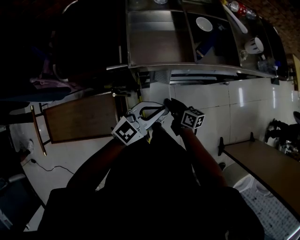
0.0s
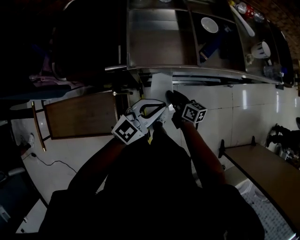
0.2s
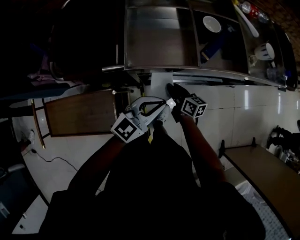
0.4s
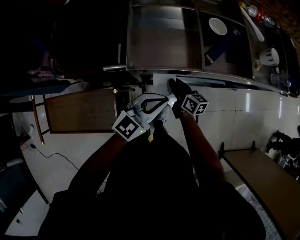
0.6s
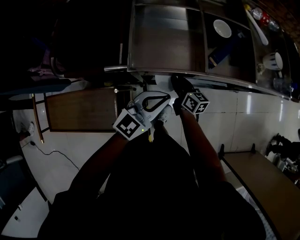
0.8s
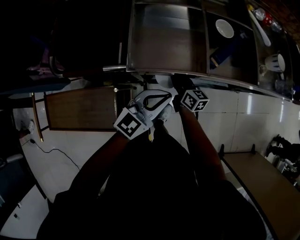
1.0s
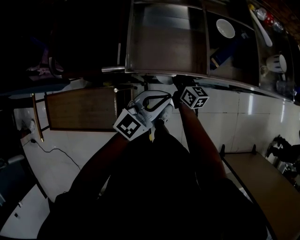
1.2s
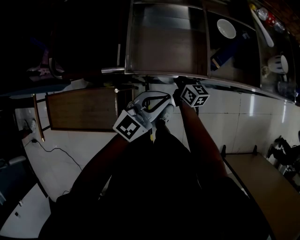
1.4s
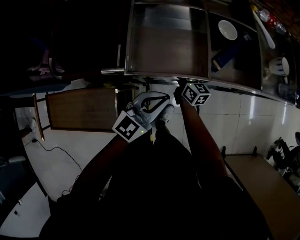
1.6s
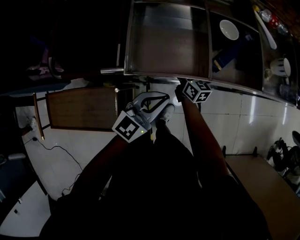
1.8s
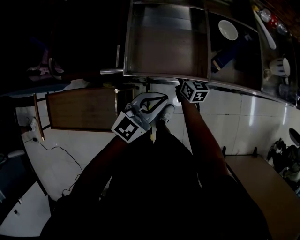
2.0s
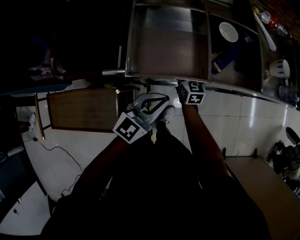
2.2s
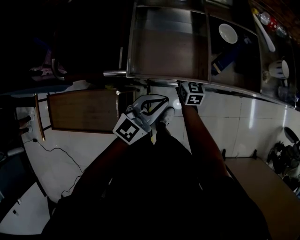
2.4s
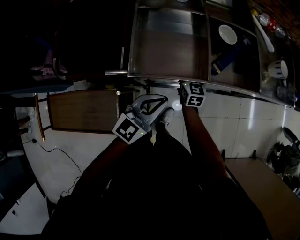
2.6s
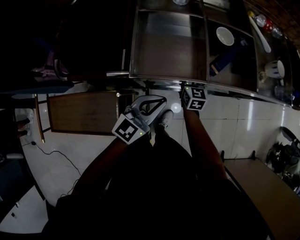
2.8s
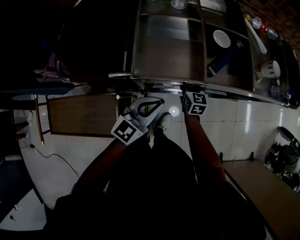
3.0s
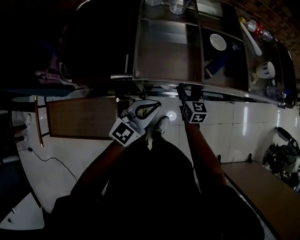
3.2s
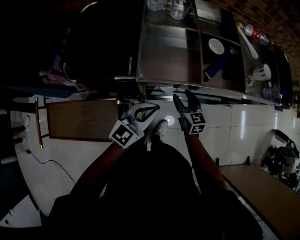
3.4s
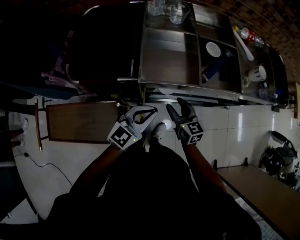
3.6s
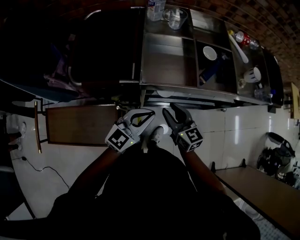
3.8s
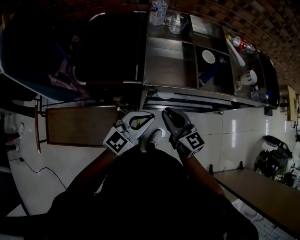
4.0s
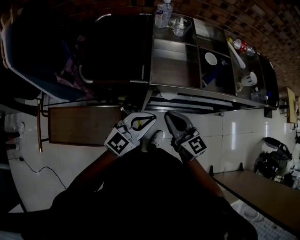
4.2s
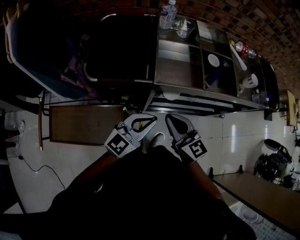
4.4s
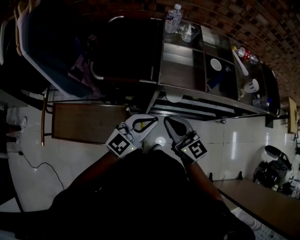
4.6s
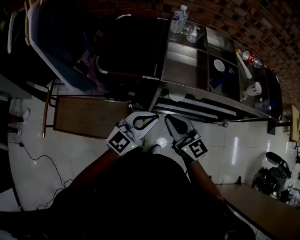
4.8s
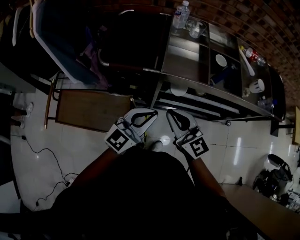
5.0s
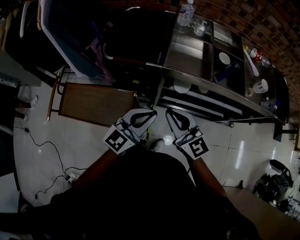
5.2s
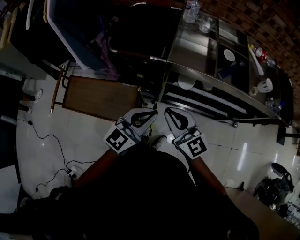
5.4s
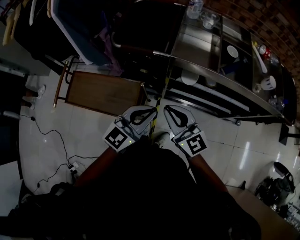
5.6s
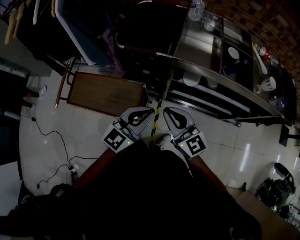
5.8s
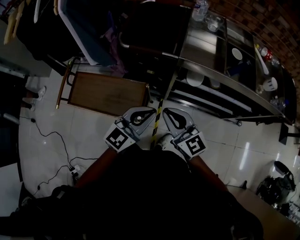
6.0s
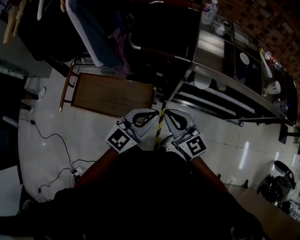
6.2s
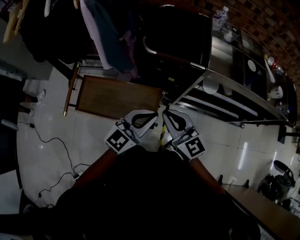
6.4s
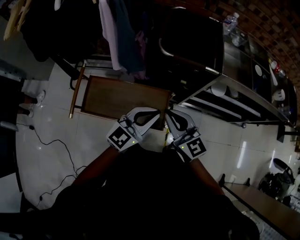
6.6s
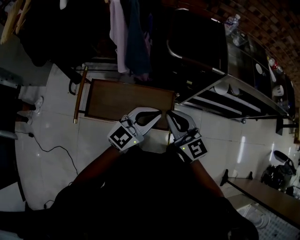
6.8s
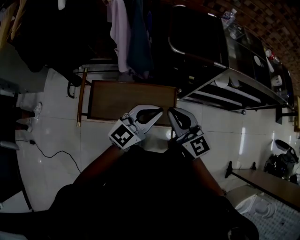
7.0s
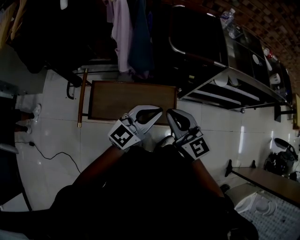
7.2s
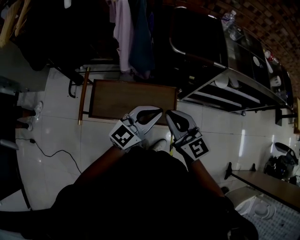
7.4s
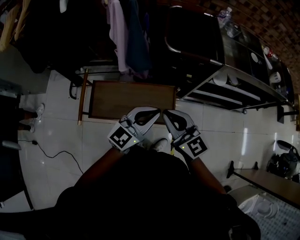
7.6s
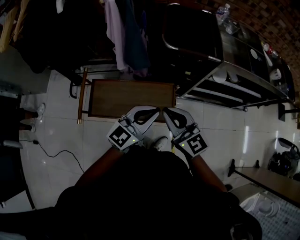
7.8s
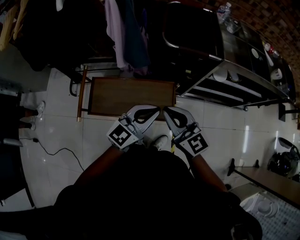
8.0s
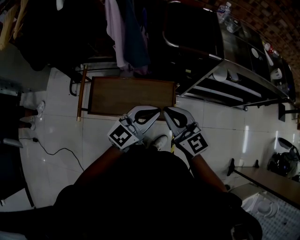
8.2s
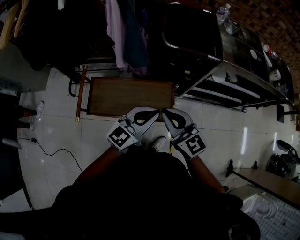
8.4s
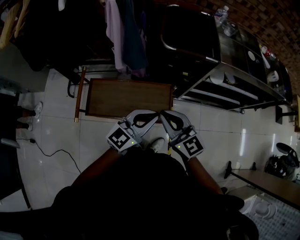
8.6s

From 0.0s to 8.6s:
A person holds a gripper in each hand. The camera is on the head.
From 0.0s to 1.4s: The left gripper travels forward by roughly 10 cm. Meanwhile the right gripper heads forward, covering roughly 20 cm.
From 1.4s to 2.8s: The right gripper turns by about 30 degrees, and opens its fingers.
From 2.8s to 4.4s: The right gripper is displaced upward, backward and to the left by roughly 35 cm, swivels roughly 30 degrees, and closes up. Meanwhile the left gripper travels upward, backward and to the left by roughly 15 cm.
From 4.4s to 5.8s: The grippers both shift backward by roughly 10 cm.
From 5.8s to 7.2s: Both grippers move to the left, approximately 30 cm.
From 7.2s to 8.6s: The left gripper moves about 5 cm.

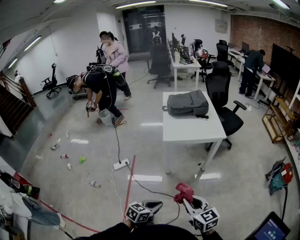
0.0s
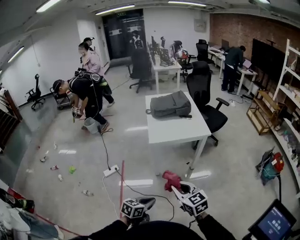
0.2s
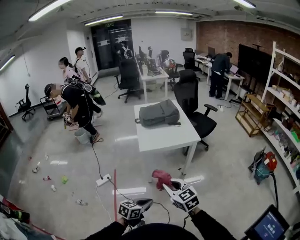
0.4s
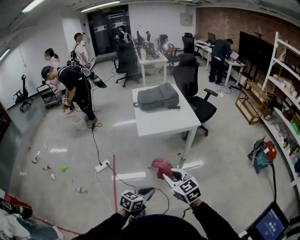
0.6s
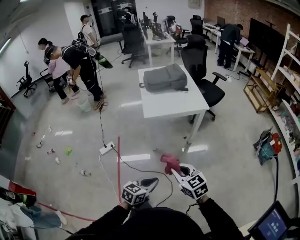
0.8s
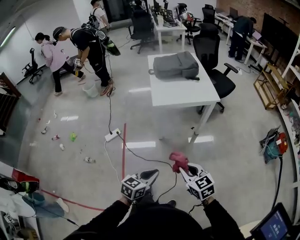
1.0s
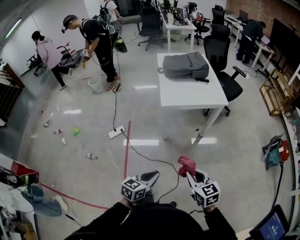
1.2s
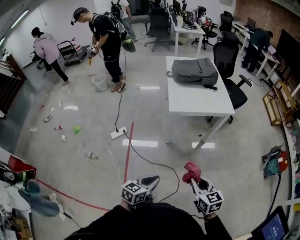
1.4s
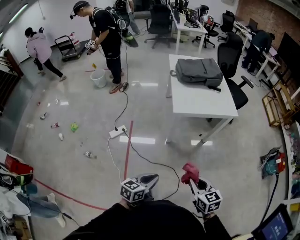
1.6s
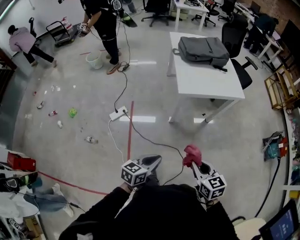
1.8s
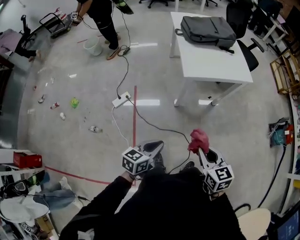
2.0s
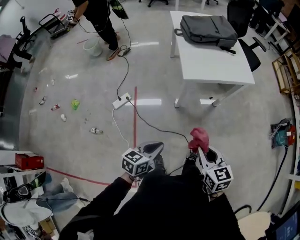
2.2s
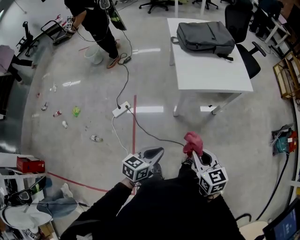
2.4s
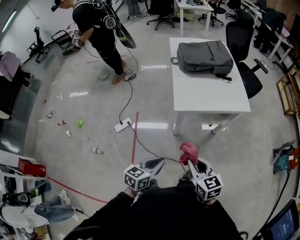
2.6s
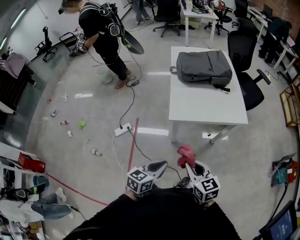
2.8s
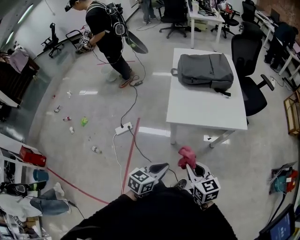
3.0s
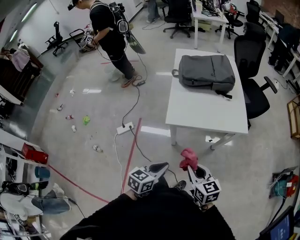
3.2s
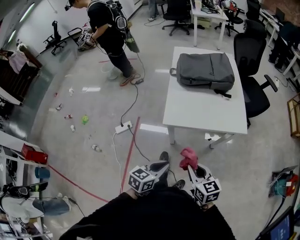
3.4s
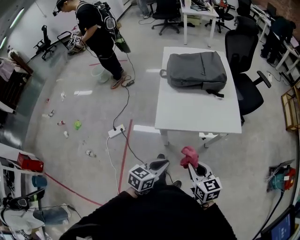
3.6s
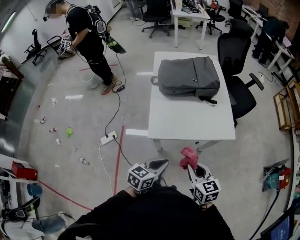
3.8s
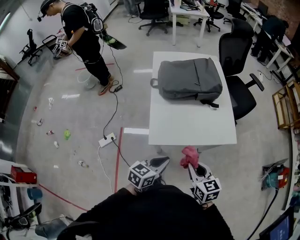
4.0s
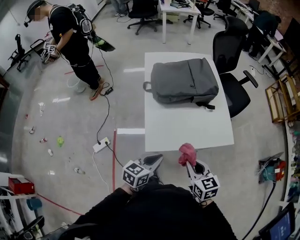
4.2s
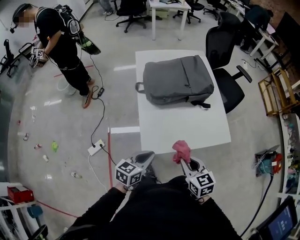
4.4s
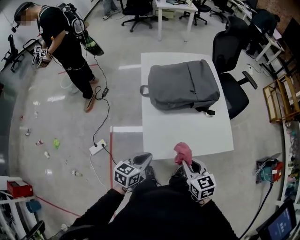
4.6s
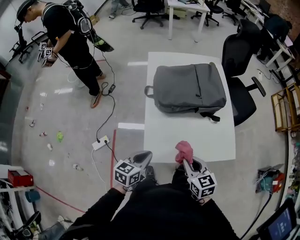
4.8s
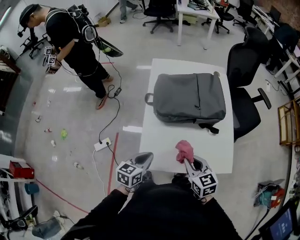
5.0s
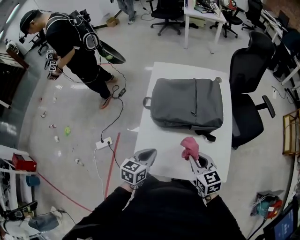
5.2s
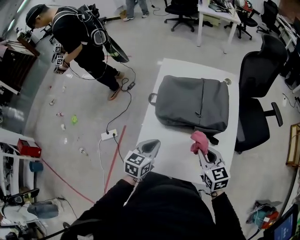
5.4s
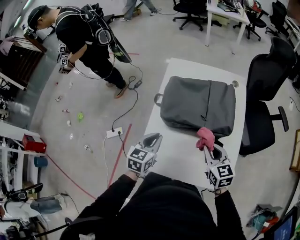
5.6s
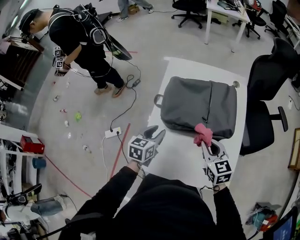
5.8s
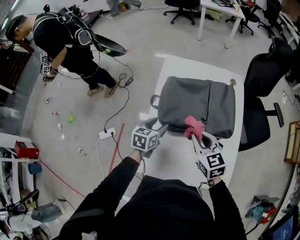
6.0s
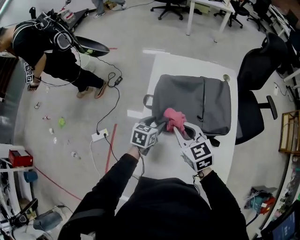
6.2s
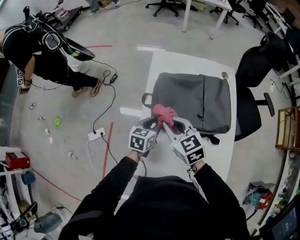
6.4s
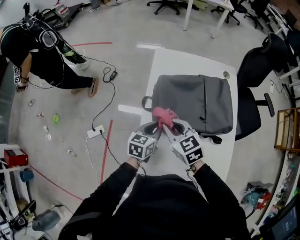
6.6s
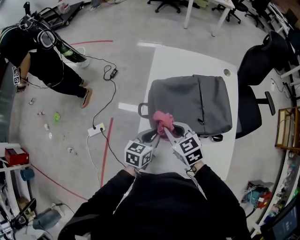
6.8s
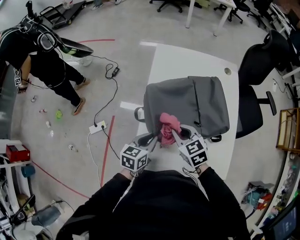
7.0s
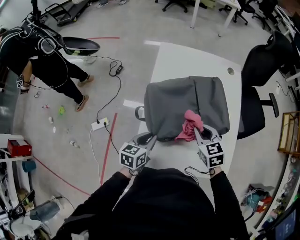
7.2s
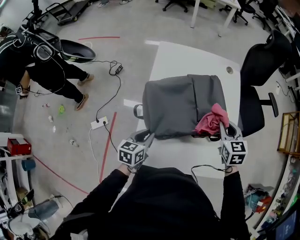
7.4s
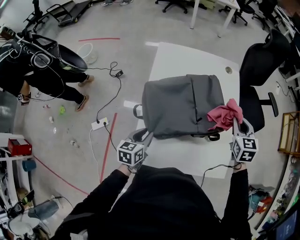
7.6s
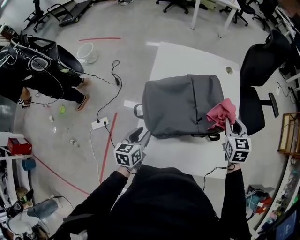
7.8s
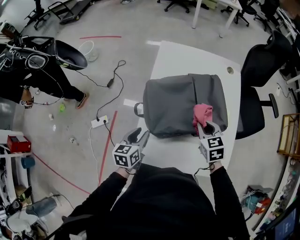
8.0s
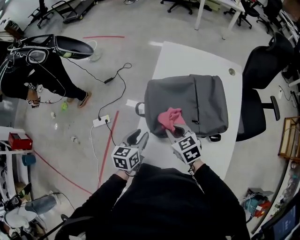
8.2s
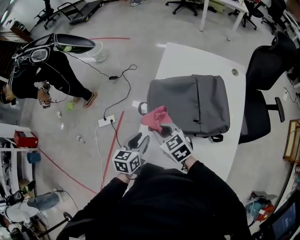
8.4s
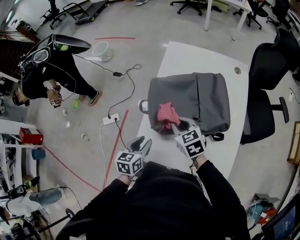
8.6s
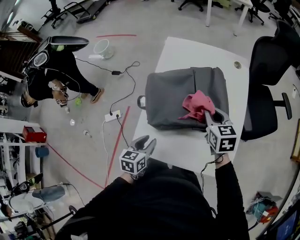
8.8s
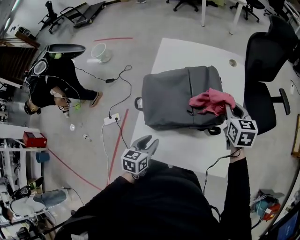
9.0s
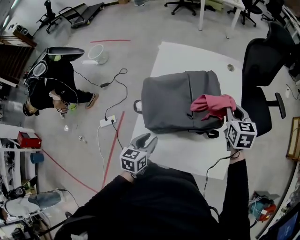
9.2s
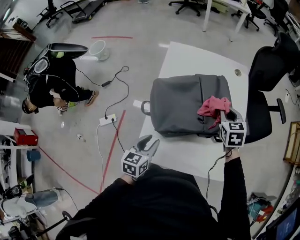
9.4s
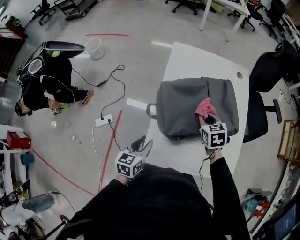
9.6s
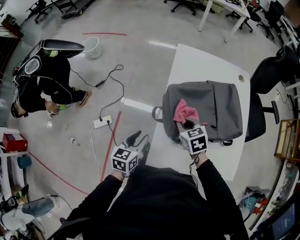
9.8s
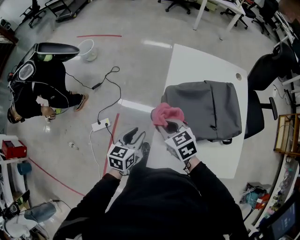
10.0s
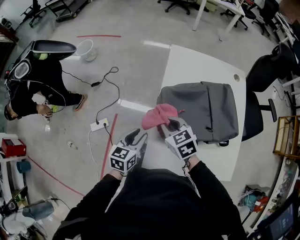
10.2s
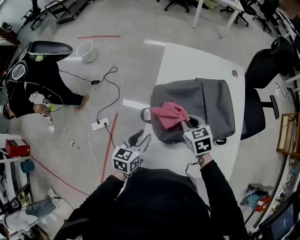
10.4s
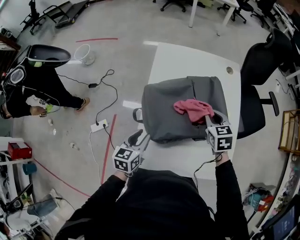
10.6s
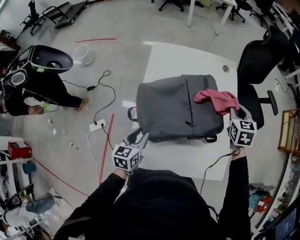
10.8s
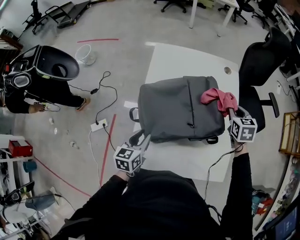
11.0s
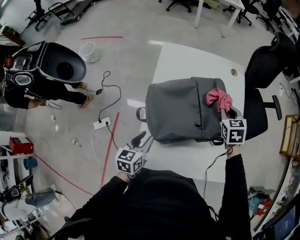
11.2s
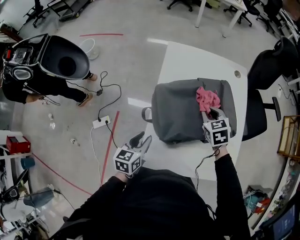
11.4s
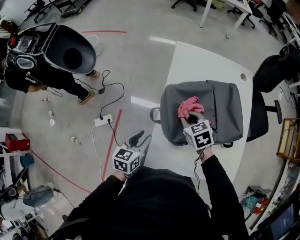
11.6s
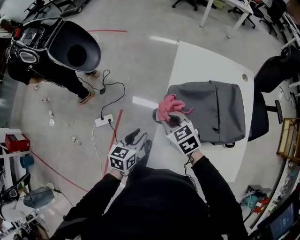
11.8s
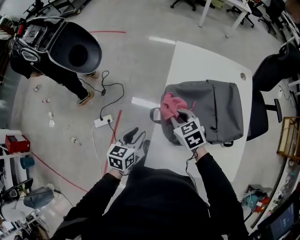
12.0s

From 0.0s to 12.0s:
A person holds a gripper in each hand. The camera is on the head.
From 0.0s to 1.6s: The right gripper travels to the left, downward and forward by roughly 15 cm. The left gripper travels to the left by roughly 15 cm.
From 1.6s to 3.0s: The left gripper moves forward and to the right, roughly 30 cm; the right gripper heads forward, covering approximately 25 cm.
From 3.0s to 4.4s: Both grippers move forward, about 30 cm.
From 4.4s to 6.0s: The left gripper changes place by roughly 30 cm, changes its angle by approximately 30 degrees, and opens up; the right gripper ends up approximately 30 cm from where it was, and swivels roughly 20 degrees.
From 6.0s to 7.6s: The right gripper heads to the right, covering roughly 20 cm, and turns by roughly 30 degrees. Meanwhile the left gripper is displaced backward by about 10 cm, and closes up.
From 7.6s to 9.0s: The left gripper shifts by some 10 cm. The right gripper goes downward and returns, some 10 cm each way.
From 9.0s to 10.4s: The right gripper shifts about 30 cm to the left, and swivels some 20 degrees; the left gripper goes roughly 15 cm to the left and forward.
From 10.4s to 12.0s: The left gripper ends up roughly 10 cm from where it was. The right gripper moves approximately 5 cm upward and comes back.

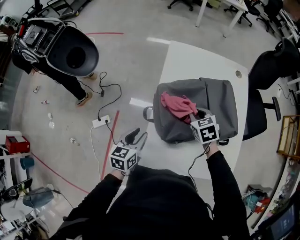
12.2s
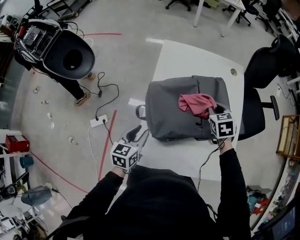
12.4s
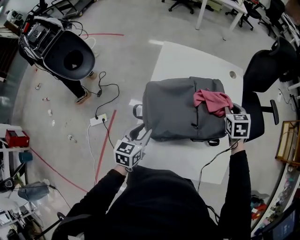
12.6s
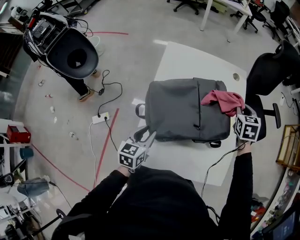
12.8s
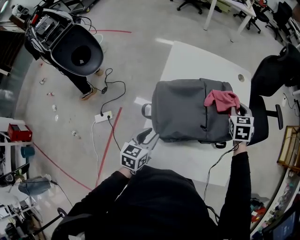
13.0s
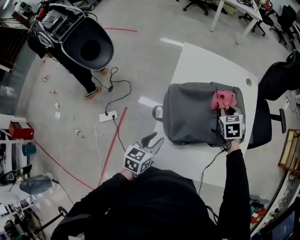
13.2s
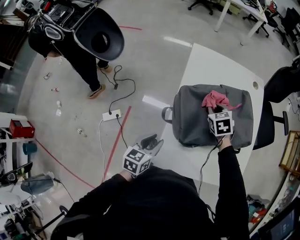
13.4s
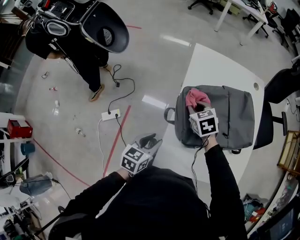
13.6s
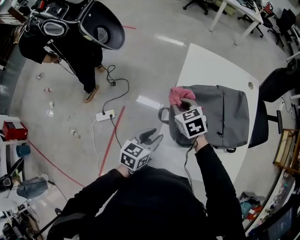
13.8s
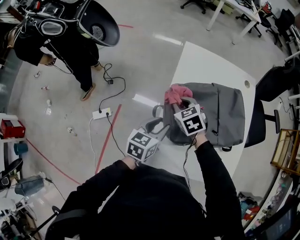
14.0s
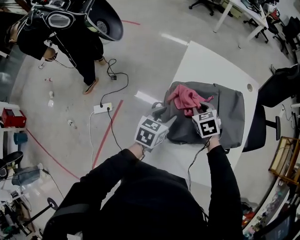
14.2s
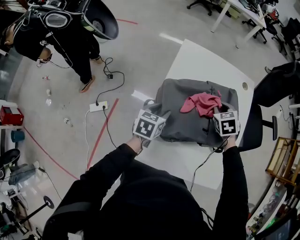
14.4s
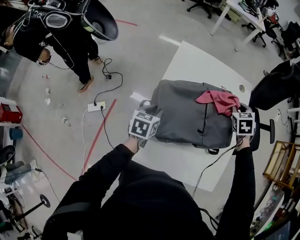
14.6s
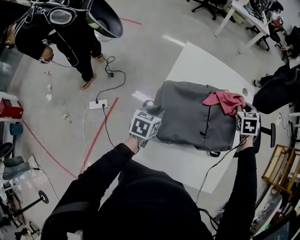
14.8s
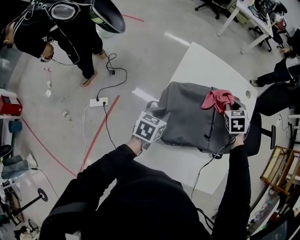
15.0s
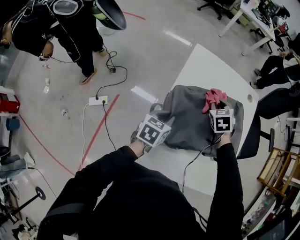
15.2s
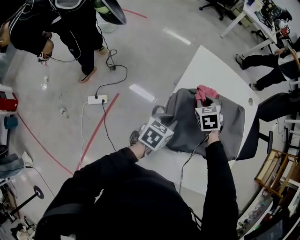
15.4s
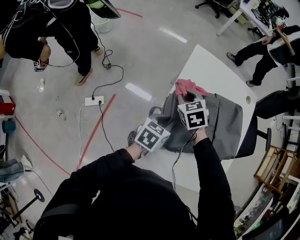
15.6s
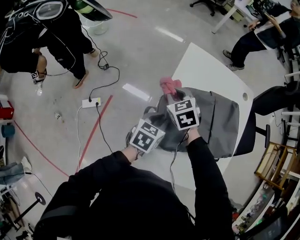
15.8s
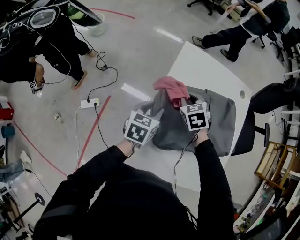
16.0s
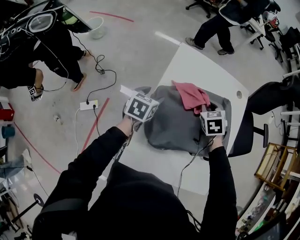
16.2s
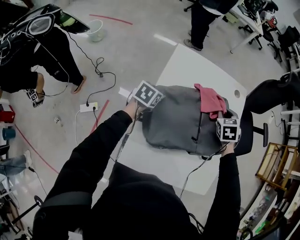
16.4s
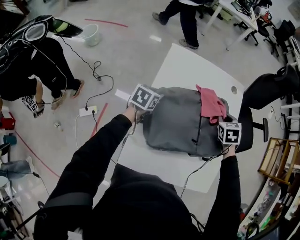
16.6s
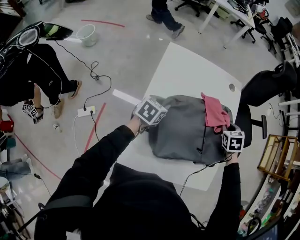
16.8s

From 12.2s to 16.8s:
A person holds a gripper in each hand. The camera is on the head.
From 12.2s to 13.8s: The right gripper moves to the left, about 20 cm, while the left gripper moves roughly 10 cm to the right and comes back.
From 13.8s to 15.2s: The right gripper travels to the right and forward by about 20 cm, and turns by approximately 20 degrees, while the left gripper heads forward and to the right, covering some 10 cm.
From 15.2s to 16.8s: The left gripper changes place by about 10 cm, and opens and closes again. Meanwhile the right gripper changes place by approximately 25 cm.
